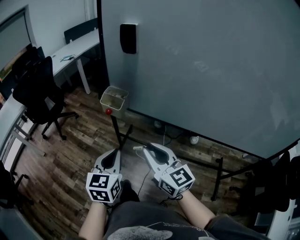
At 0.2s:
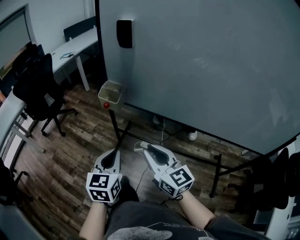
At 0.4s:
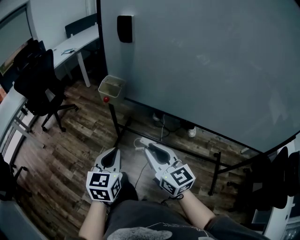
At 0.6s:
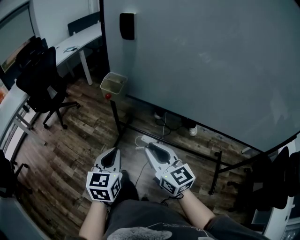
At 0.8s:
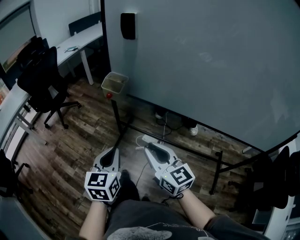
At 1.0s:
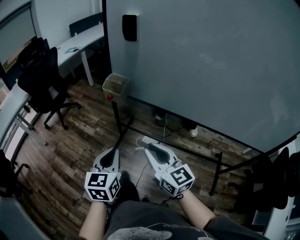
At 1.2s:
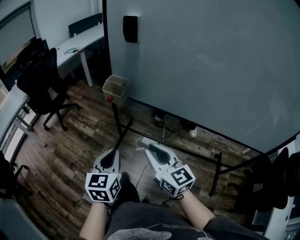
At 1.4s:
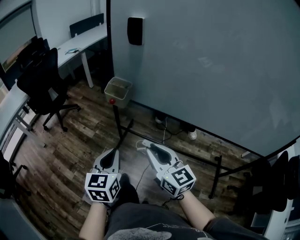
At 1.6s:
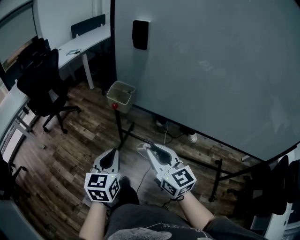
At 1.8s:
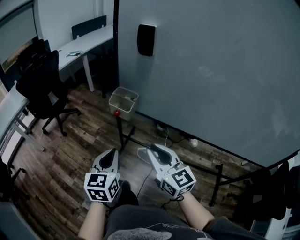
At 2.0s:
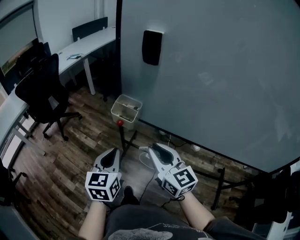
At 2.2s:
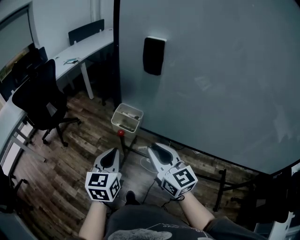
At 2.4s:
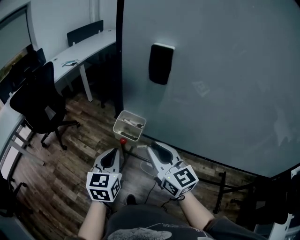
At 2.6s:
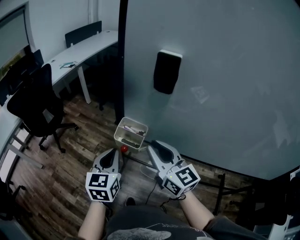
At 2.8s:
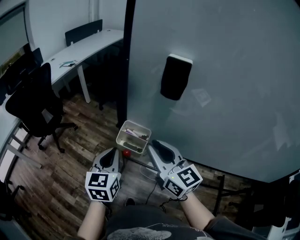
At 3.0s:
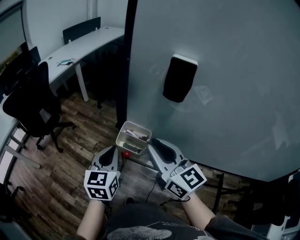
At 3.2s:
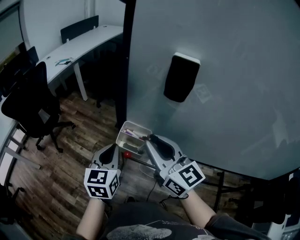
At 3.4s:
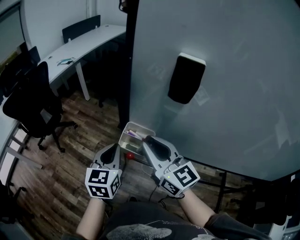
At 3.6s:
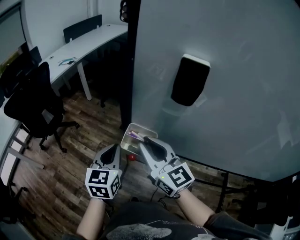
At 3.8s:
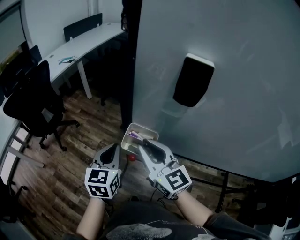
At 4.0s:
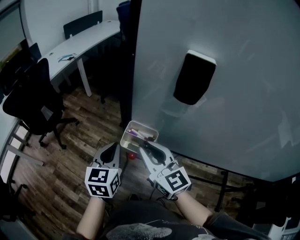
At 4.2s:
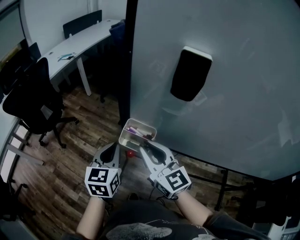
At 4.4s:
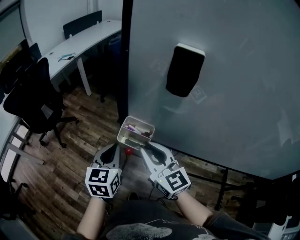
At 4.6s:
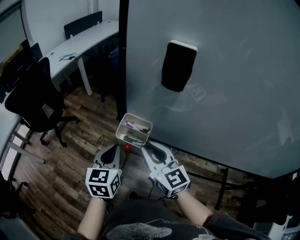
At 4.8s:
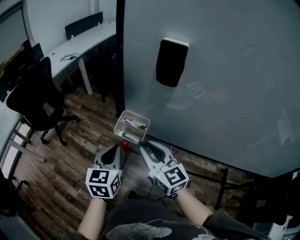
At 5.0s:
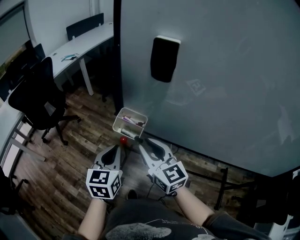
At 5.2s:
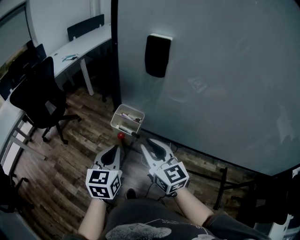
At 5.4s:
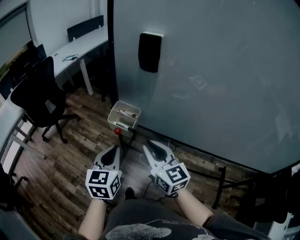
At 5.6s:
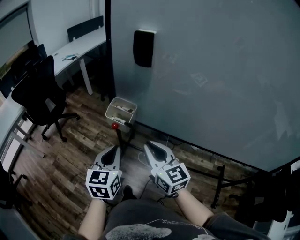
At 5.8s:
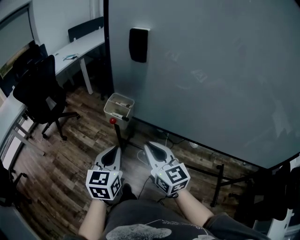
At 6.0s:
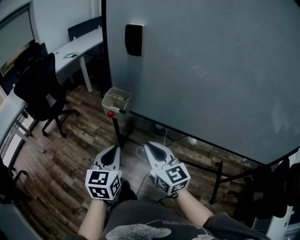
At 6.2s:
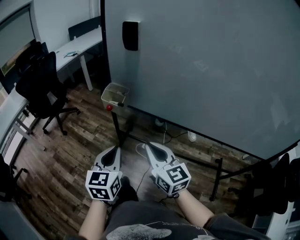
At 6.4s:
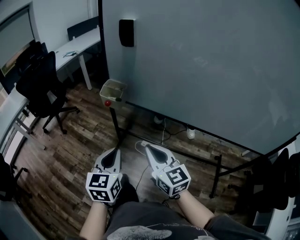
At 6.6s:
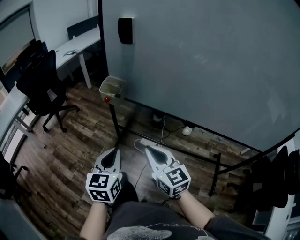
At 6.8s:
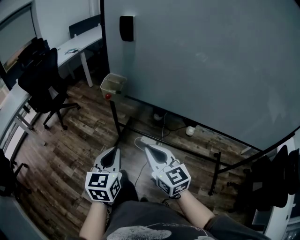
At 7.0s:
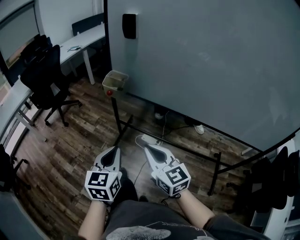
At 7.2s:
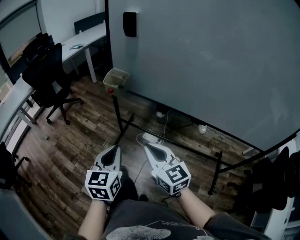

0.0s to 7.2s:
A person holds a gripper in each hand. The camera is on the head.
0.0s to 1.4s: The left gripper changes place by about 5 cm.
1.4s to 2.8s: Both grippers travel together forward, about 25 cm.
2.8s to 4.4s: The right gripper moves about 5 cm.
4.4s to 5.8s: The right gripper goes about 15 cm backward and to the right; the left gripper goes roughly 15 cm backward.
5.8s to 7.2s: The grippers both shift backward by approximately 15 cm.

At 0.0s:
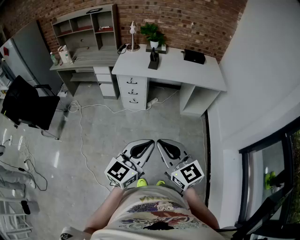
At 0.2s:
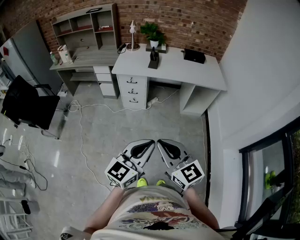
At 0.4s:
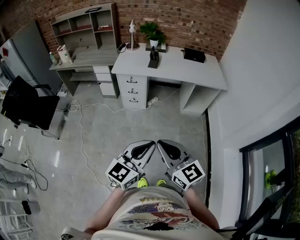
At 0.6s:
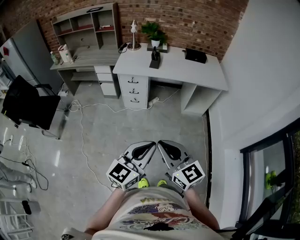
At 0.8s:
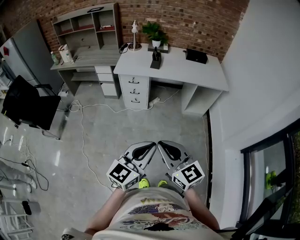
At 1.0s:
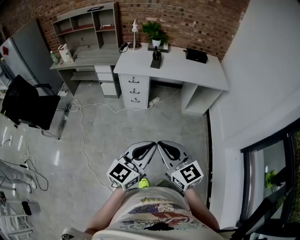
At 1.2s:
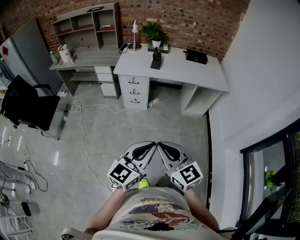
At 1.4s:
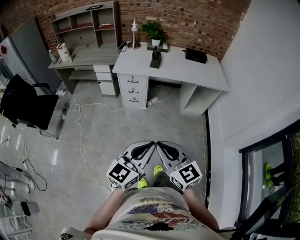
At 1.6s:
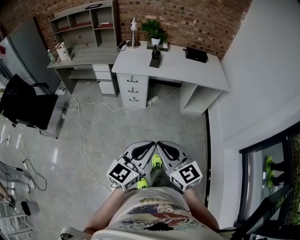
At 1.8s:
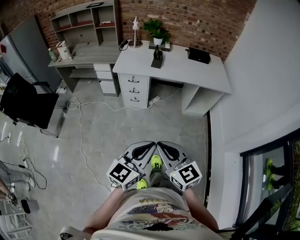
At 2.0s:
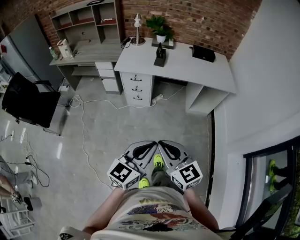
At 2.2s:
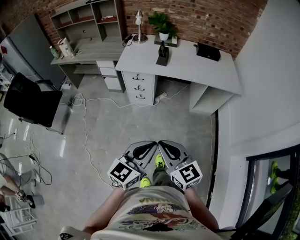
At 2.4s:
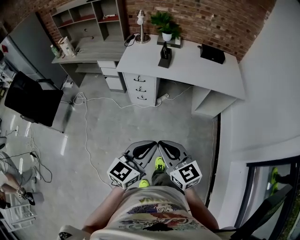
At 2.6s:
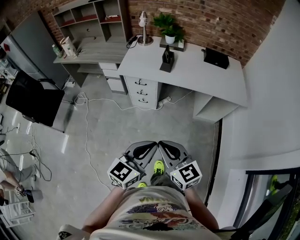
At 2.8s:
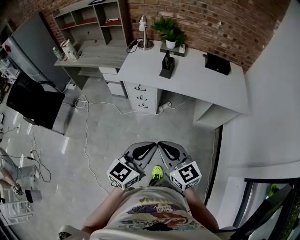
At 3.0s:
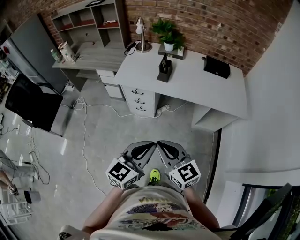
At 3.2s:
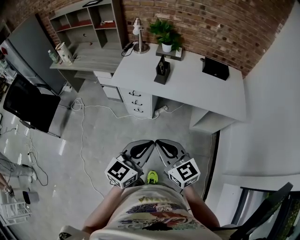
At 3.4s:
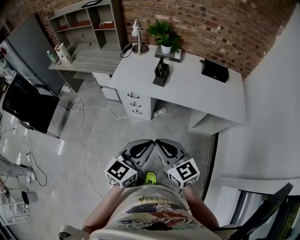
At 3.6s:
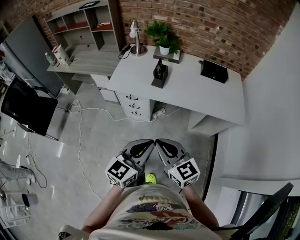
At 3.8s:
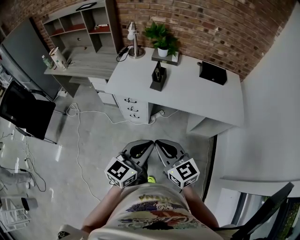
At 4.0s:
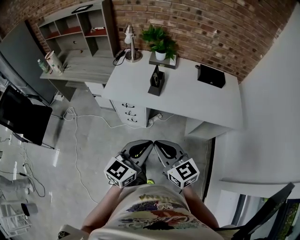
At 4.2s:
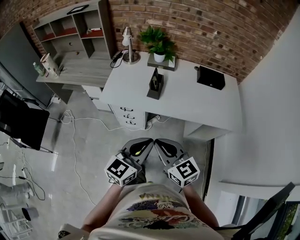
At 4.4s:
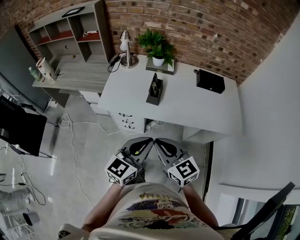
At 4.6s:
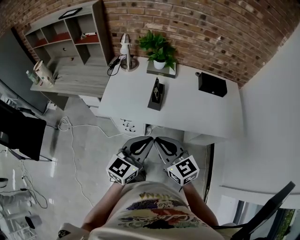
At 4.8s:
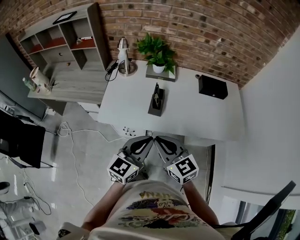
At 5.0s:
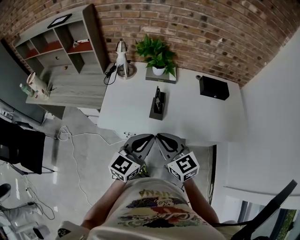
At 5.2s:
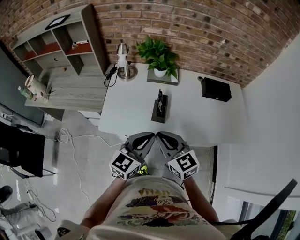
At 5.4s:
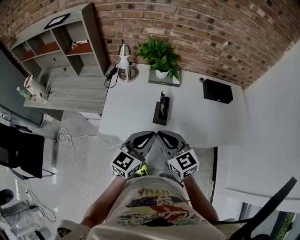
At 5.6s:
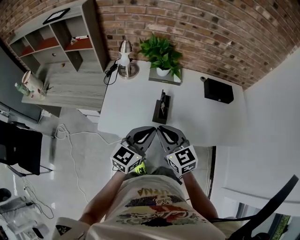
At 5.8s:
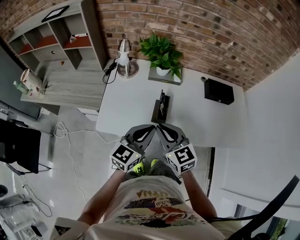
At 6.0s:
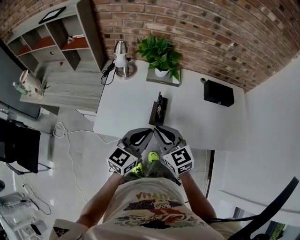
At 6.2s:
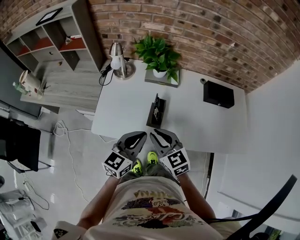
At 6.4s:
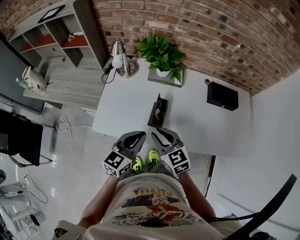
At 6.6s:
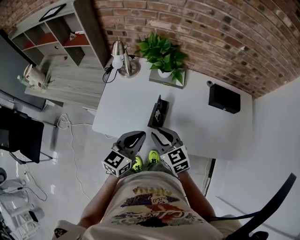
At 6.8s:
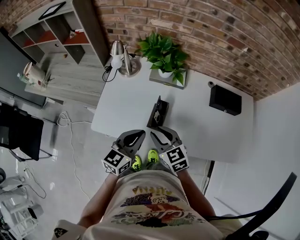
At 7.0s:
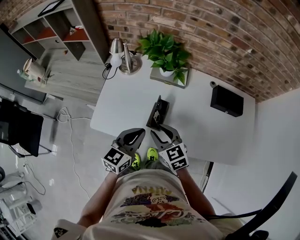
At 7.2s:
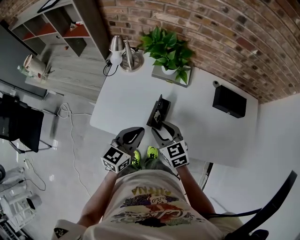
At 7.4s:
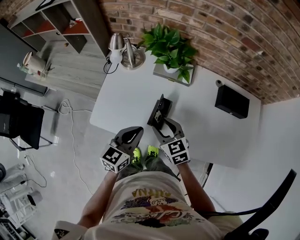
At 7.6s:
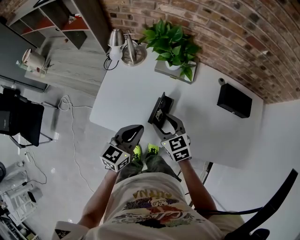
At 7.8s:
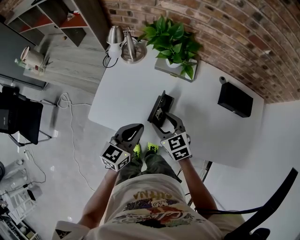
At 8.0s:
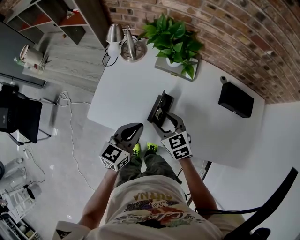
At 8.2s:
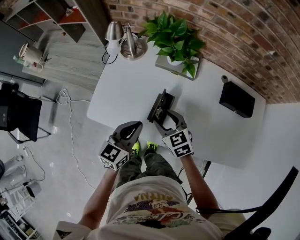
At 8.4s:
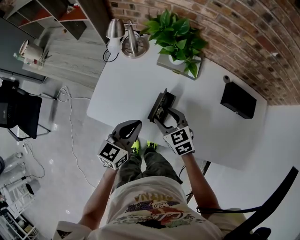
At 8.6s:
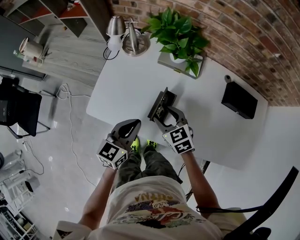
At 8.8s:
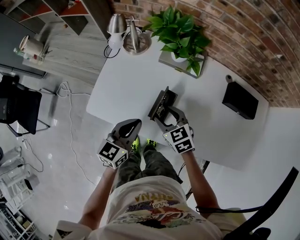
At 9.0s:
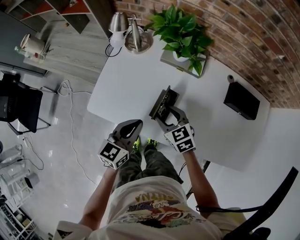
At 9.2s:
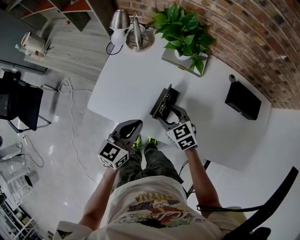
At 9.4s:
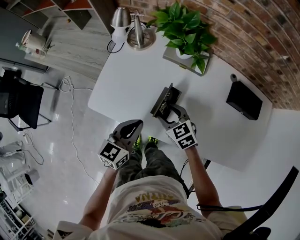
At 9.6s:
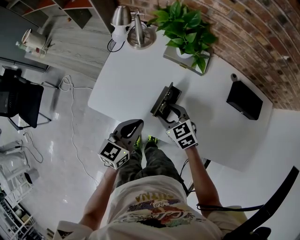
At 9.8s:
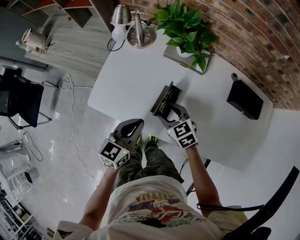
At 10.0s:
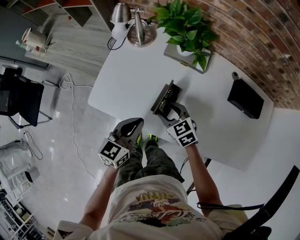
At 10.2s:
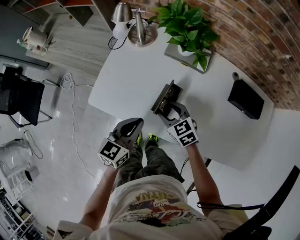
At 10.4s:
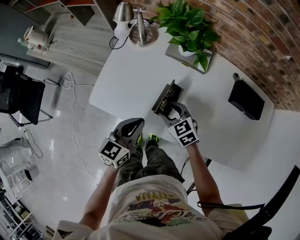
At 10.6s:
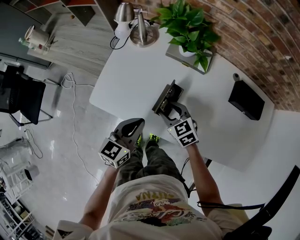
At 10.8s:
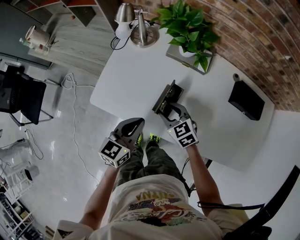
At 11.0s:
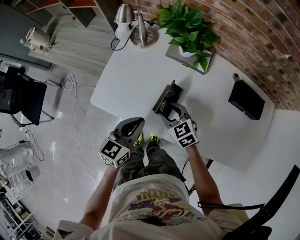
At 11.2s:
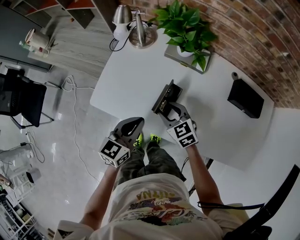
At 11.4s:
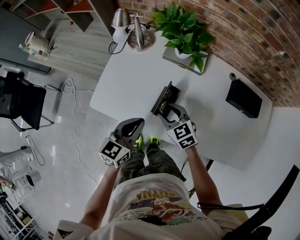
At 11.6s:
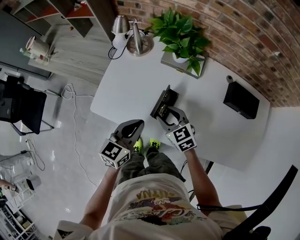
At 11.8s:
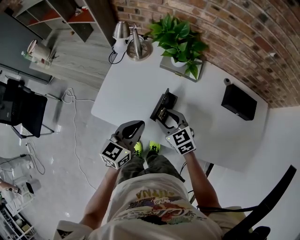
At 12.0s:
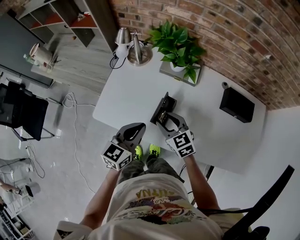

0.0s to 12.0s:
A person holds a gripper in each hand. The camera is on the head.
0.0s to 1.6s: There are only small adjustments of the grippers.
1.6s to 3.0s: The two grippers go some 25 cm forward.
3.0s to 4.4s: Both grippers travel together forward, some 20 cm.
4.4s to 6.0s: The two grippers go some 25 cm forward.
6.0s to 7.6s: The grippers both shift downward and forward by some 10 cm. The right gripper opens.
7.6s to 9.0s: There are only small adjustments of the grippers.
9.0s to 10.4s: The grippers move only a little.
10.4s to 12.0s: The right gripper goes some 5 cm upward.

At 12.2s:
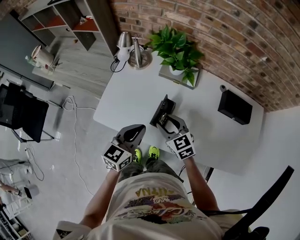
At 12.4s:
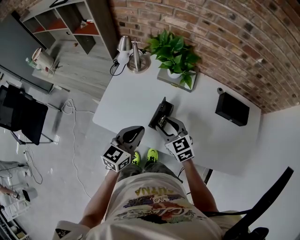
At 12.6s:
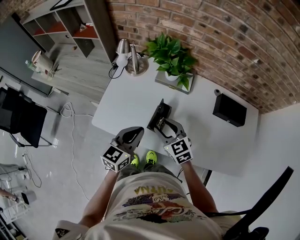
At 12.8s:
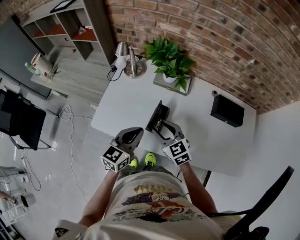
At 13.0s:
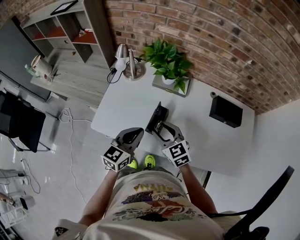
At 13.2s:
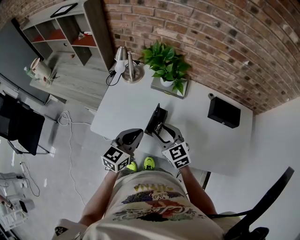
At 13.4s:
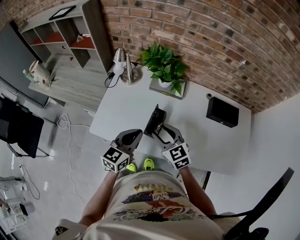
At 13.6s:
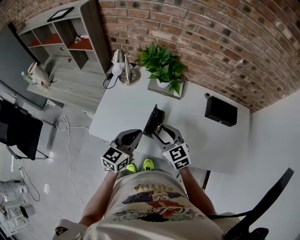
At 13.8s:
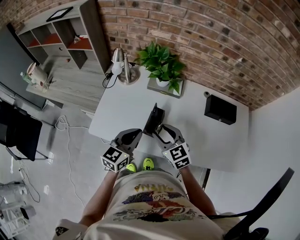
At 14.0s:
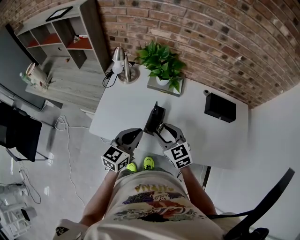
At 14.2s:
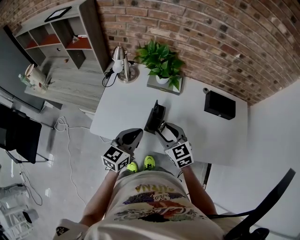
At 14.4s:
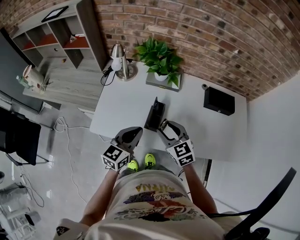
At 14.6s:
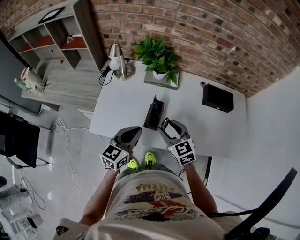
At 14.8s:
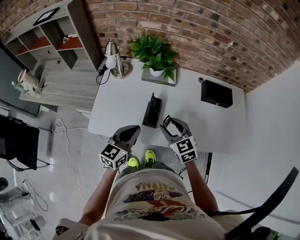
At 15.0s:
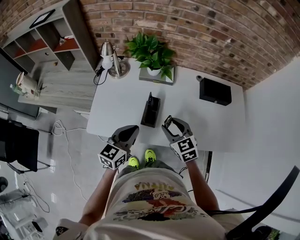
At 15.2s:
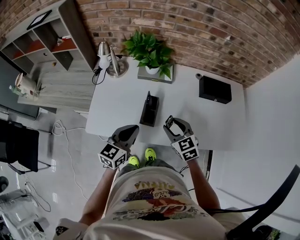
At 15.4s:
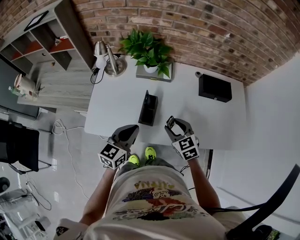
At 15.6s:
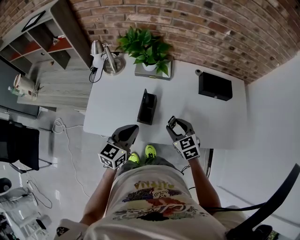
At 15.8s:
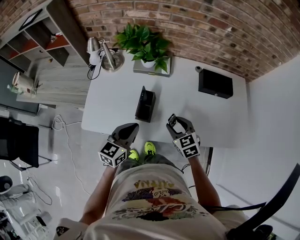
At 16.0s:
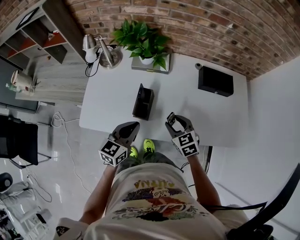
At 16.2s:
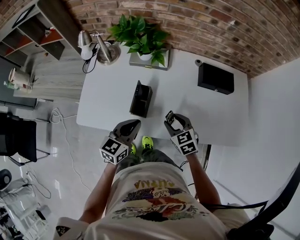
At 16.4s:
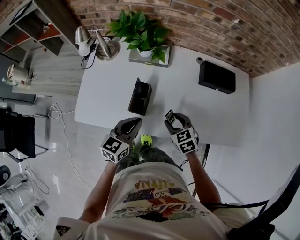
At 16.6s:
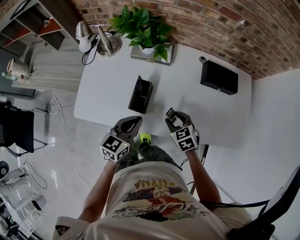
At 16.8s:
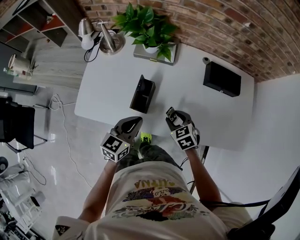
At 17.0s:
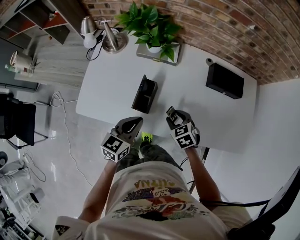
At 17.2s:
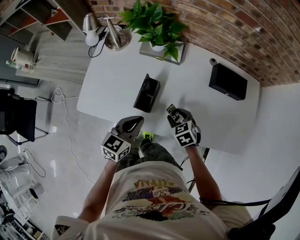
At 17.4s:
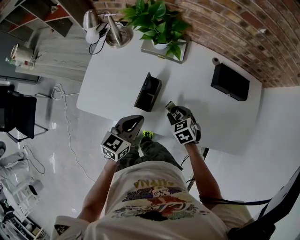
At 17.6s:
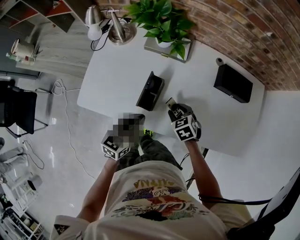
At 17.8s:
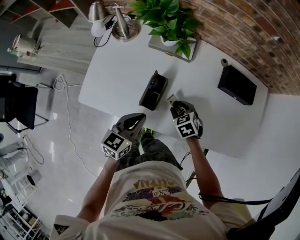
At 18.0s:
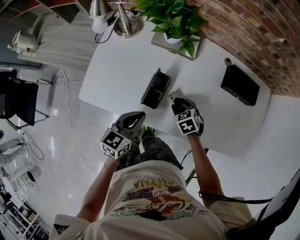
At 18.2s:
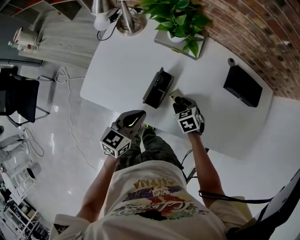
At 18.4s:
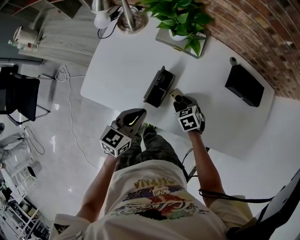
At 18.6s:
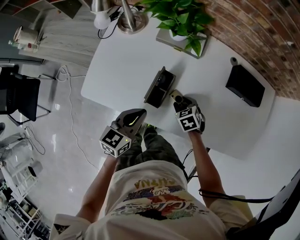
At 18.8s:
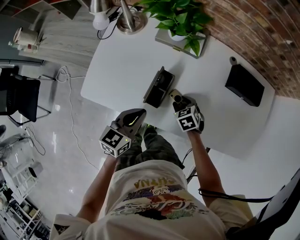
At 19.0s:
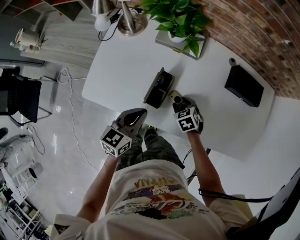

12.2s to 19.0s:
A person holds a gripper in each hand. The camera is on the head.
12.2s to 13.6s: The right gripper changes place by roughly 5 cm.
13.6s to 15.0s: The right gripper moves to the right, approximately 5 cm.
15.0s to 16.2s: The right gripper travels downward and to the right by about 10 cm; the left gripper is displaced to the right by about 5 cm.
16.2s to 17.6s: The right gripper shifts approximately 10 cm downward.
17.6s to 19.0s: The right gripper shifts roughly 5 cm downward.
